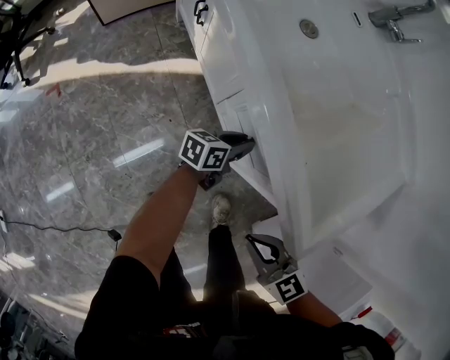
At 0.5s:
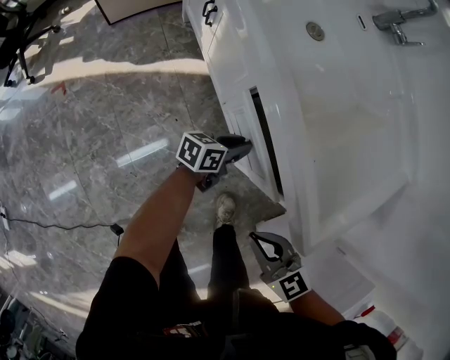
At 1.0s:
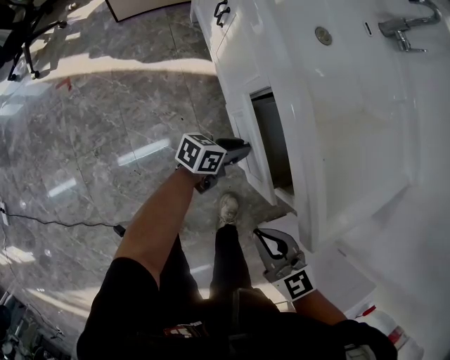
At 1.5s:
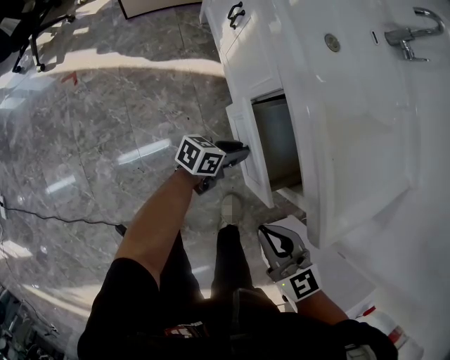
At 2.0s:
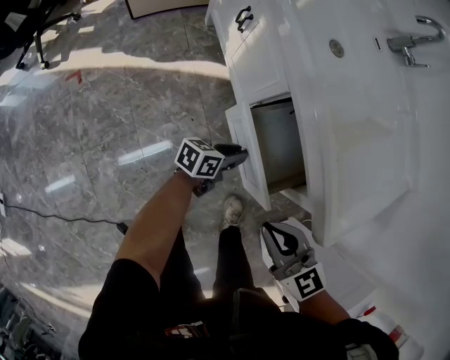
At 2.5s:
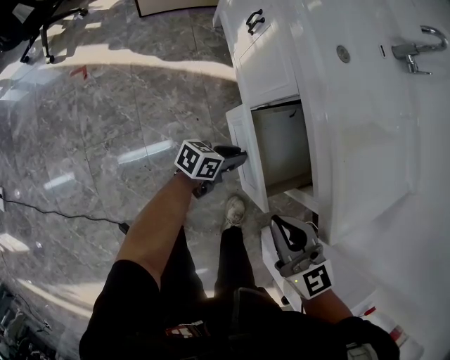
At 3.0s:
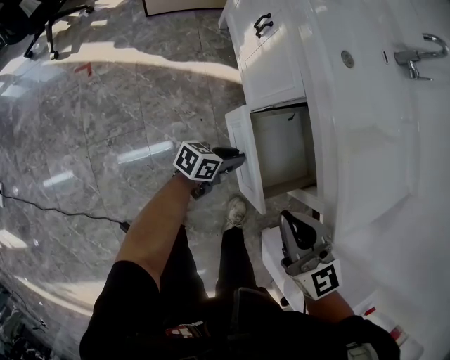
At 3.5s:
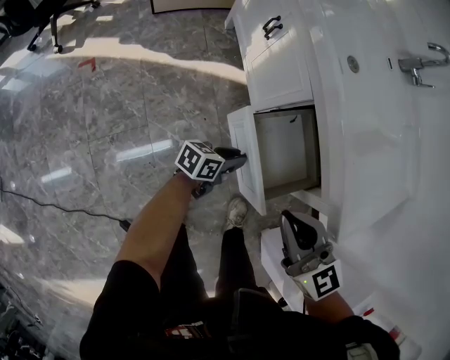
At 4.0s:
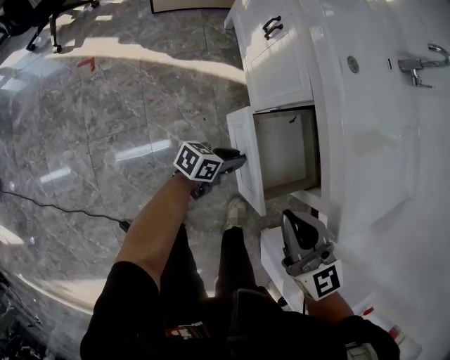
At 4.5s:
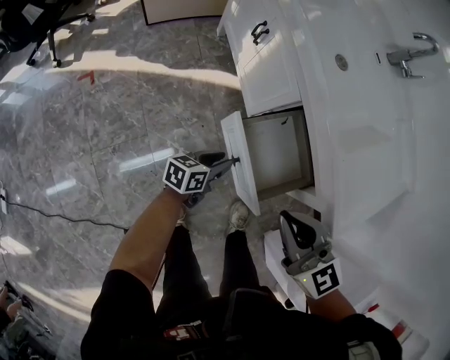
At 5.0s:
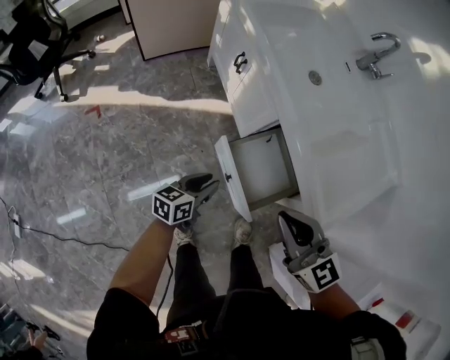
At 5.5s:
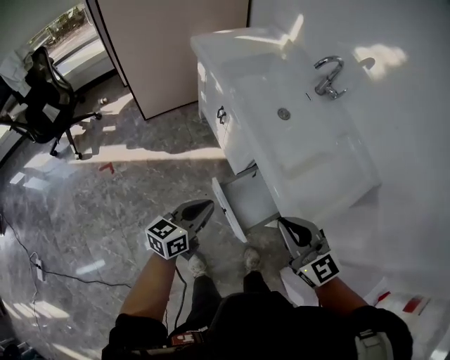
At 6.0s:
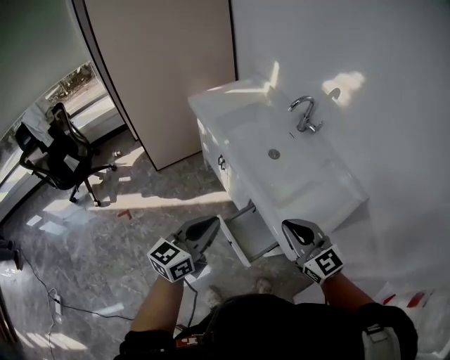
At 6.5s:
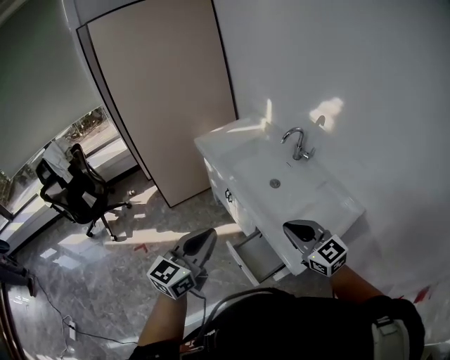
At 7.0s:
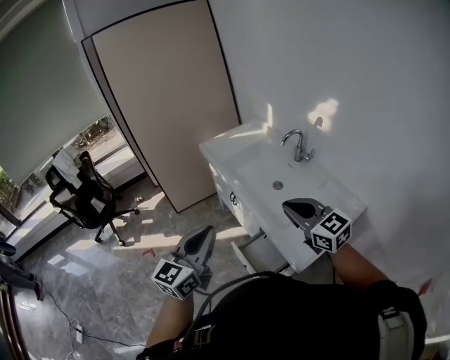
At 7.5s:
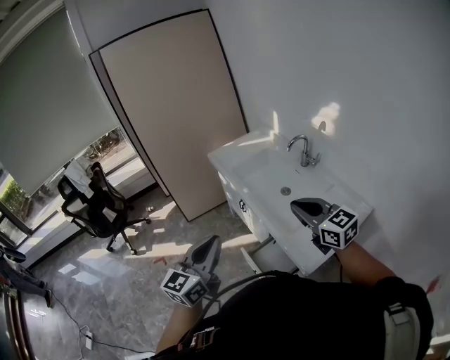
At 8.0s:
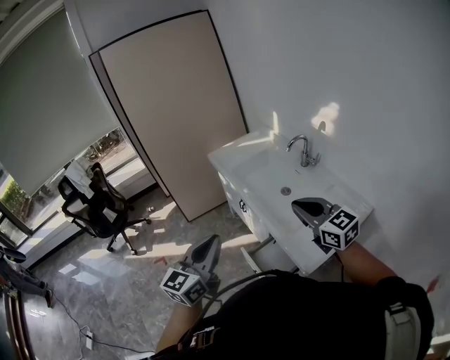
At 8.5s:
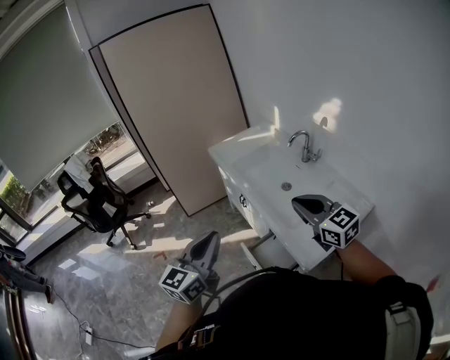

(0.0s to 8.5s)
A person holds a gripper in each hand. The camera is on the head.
0.0s - 2.0s: The right gripper heads to the left and upward, covering approximately 10 cm. The left gripper shifts about 15 cm to the left and backward.
2.0s - 4.0s: The right gripper shifts approximately 10 cm to the left and upward. Meanwhile the left gripper travels to the left by some 5 cm.
4.0s - 6.5s: The left gripper moves upward, about 70 cm, rotates some 50 degrees, and closes its fingers, while the right gripper moves upward, about 35 cm.
6.5s - 8.5s: The left gripper moves about 5 cm, while the right gripper travels upward by about 5 cm.

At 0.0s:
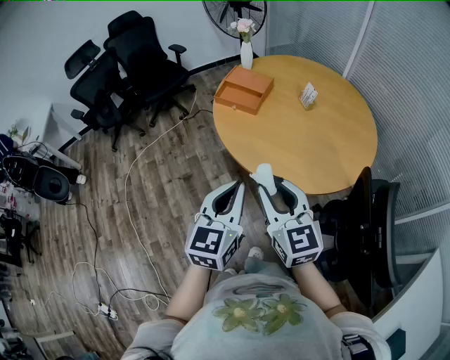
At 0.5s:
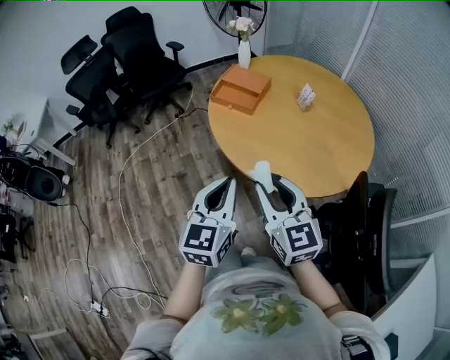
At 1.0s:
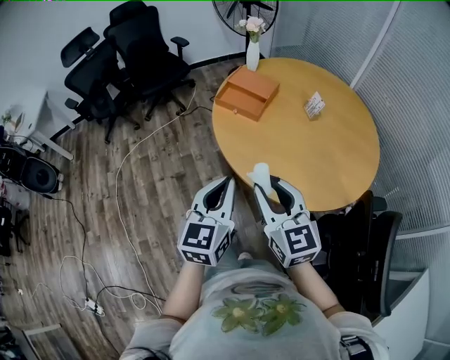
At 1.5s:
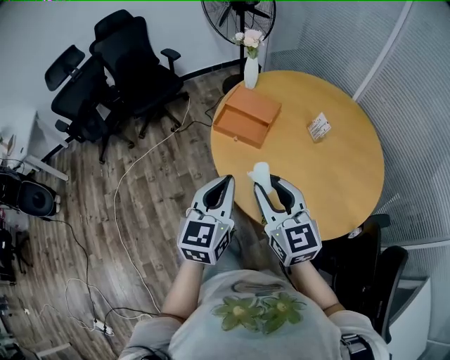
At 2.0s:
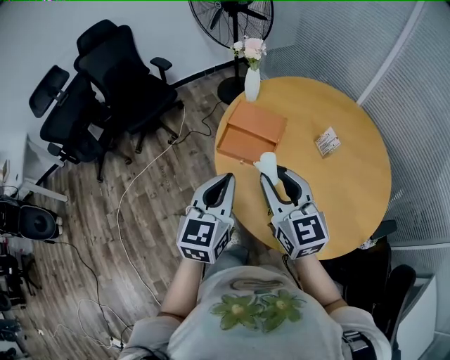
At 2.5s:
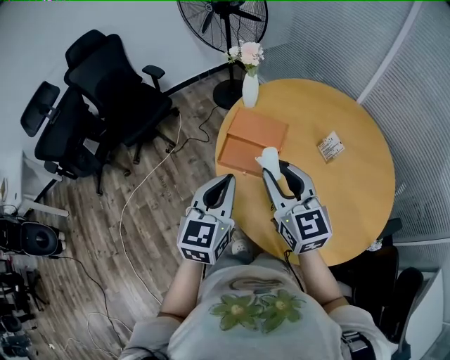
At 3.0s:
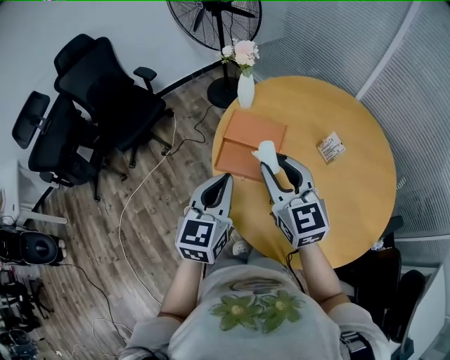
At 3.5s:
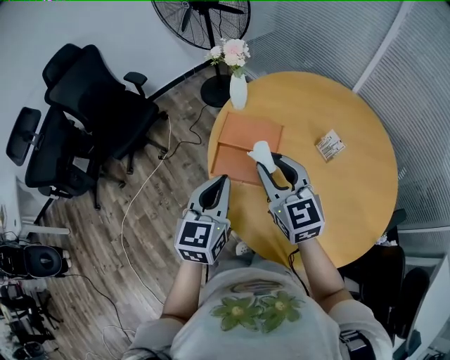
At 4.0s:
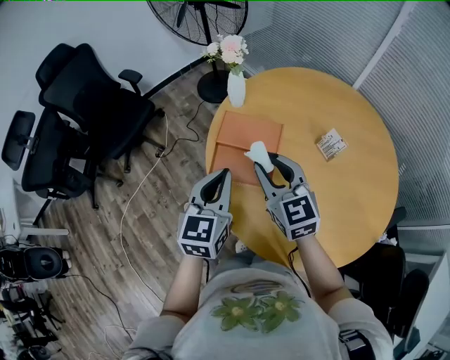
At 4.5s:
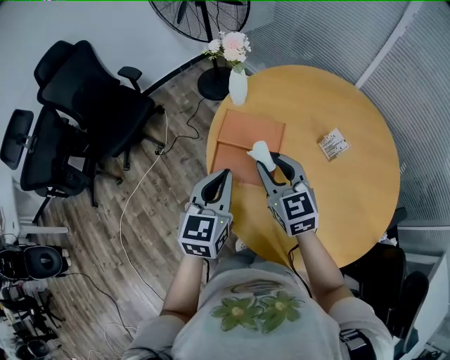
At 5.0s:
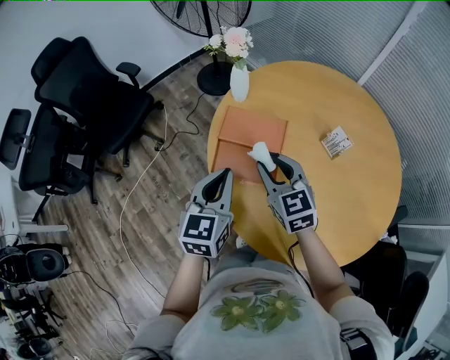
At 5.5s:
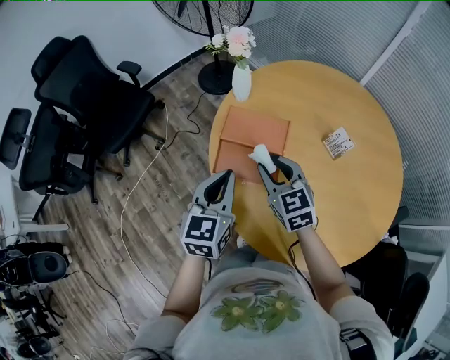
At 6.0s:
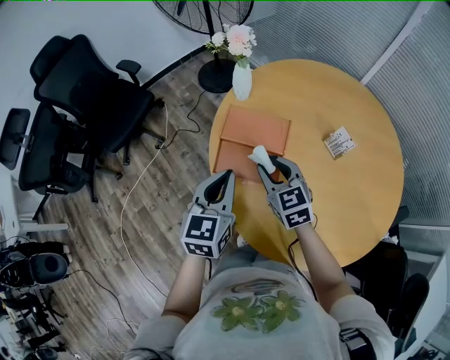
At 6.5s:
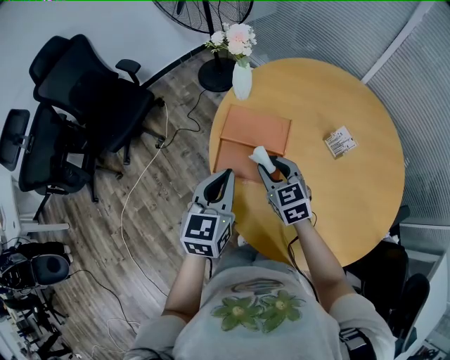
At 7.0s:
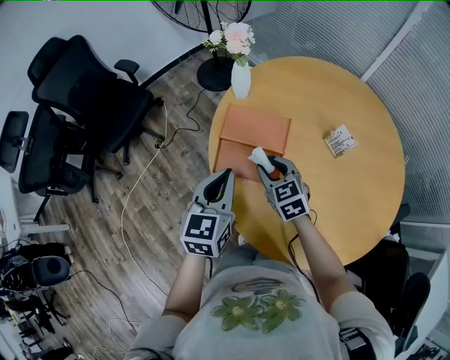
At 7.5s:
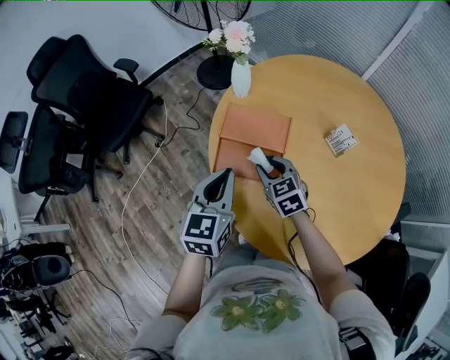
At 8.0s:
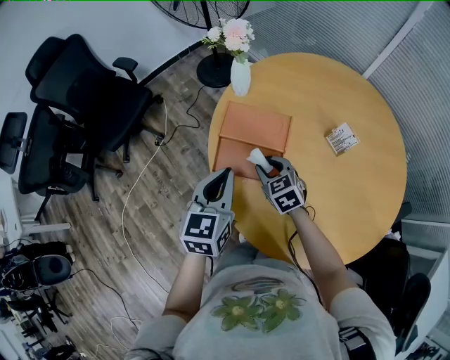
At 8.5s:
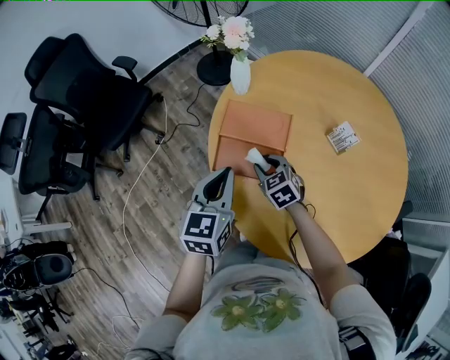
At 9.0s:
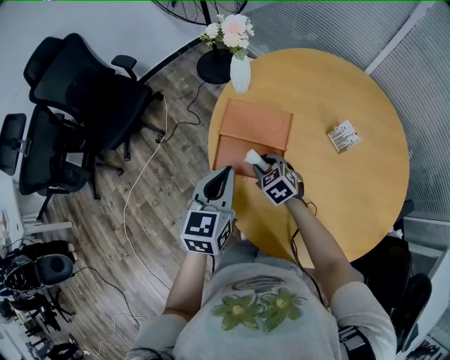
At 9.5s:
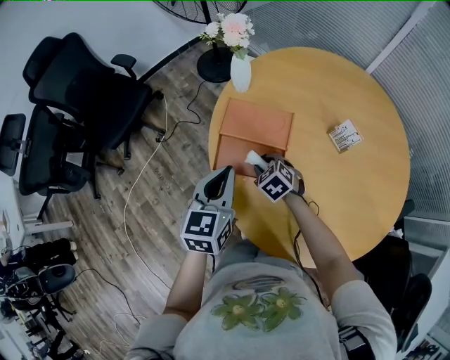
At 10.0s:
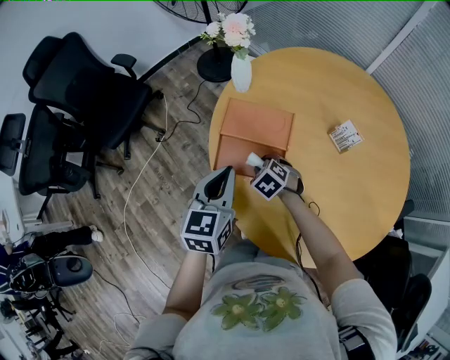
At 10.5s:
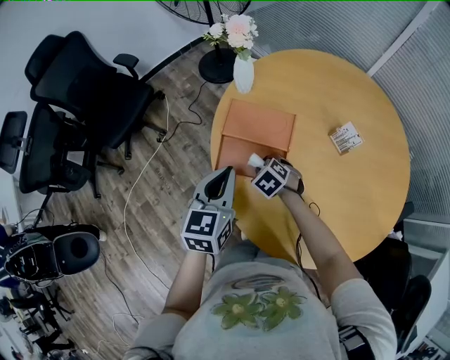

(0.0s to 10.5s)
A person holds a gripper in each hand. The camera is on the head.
0.0s - 2.0s: Both grippers are carried forward, approximately 40 cm.
2.0s - 4.0s: The left gripper goes about 15 cm forward, while the right gripper travels forward and downward by roughly 20 cm.
4.0s - 6.5s: The right gripper travels downward by about 15 cm, while the left gripper changes place by about 5 cm.
6.5s - 8.5s: The right gripper travels downward by roughly 10 cm.
8.5s - 10.5s: The right gripper heads downward, covering about 5 cm, and rotates some 20 degrees.

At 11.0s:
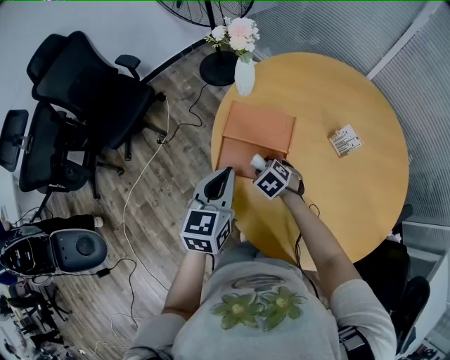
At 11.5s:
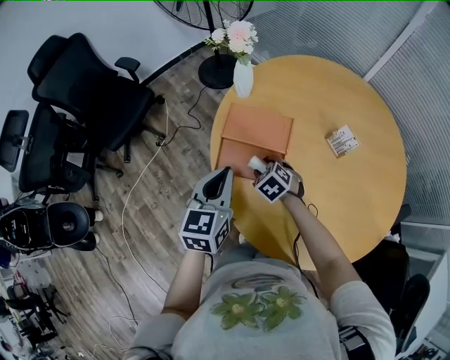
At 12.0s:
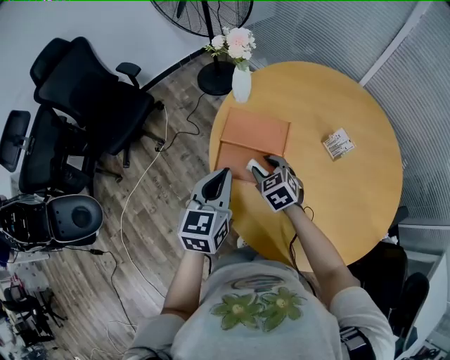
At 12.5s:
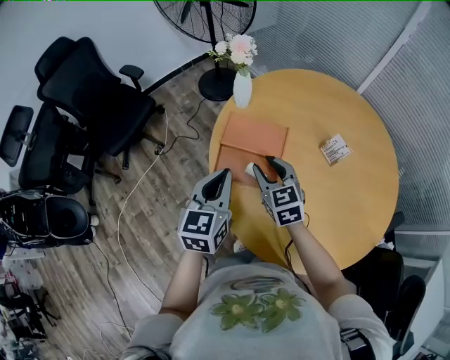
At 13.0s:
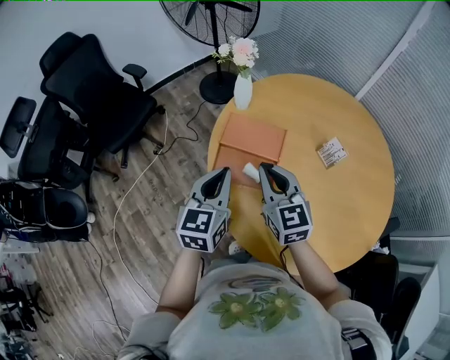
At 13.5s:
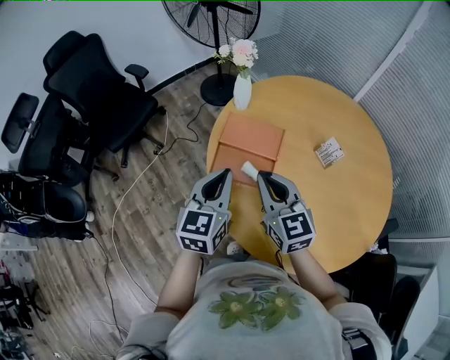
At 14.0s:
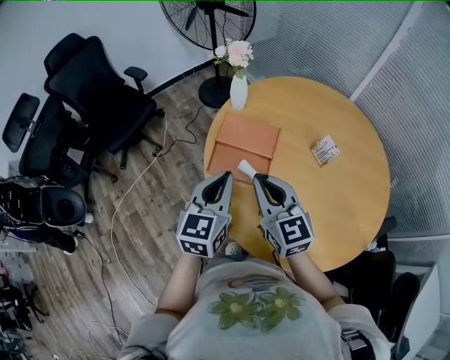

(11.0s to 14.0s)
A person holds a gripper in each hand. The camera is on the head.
11.0s - 12.5s: The right gripper goes roughly 20 cm upward, and points its fingers roughly 40 degrees further upward.
12.5s - 14.0s: The right gripper shifts some 15 cm upward and backward, and closes. The left gripper heads backward, covering roughly 5 cm.

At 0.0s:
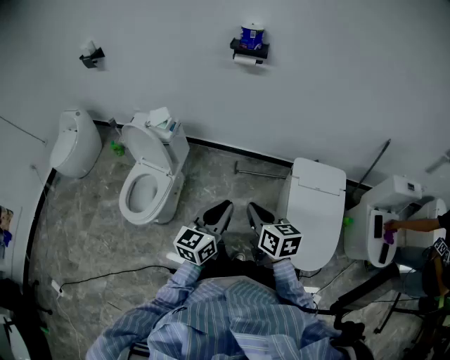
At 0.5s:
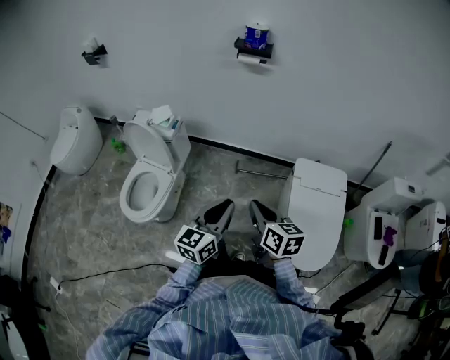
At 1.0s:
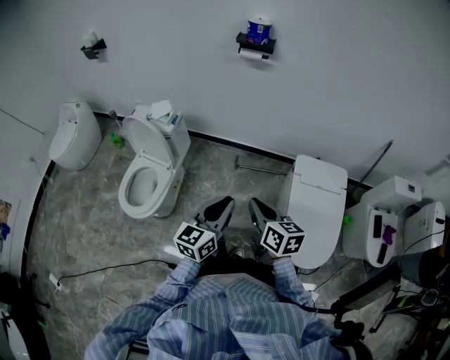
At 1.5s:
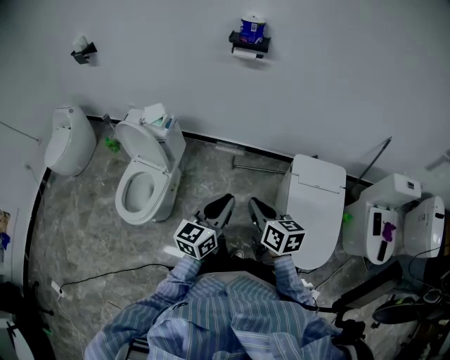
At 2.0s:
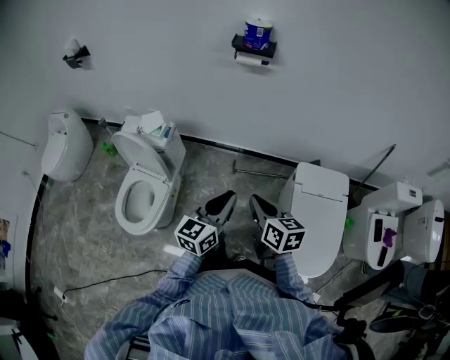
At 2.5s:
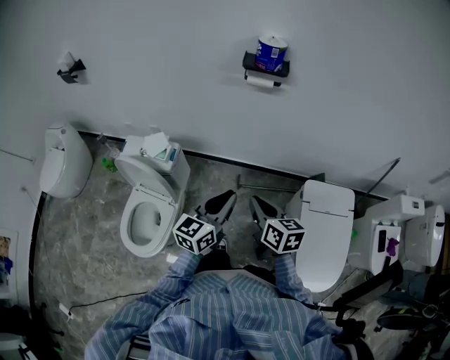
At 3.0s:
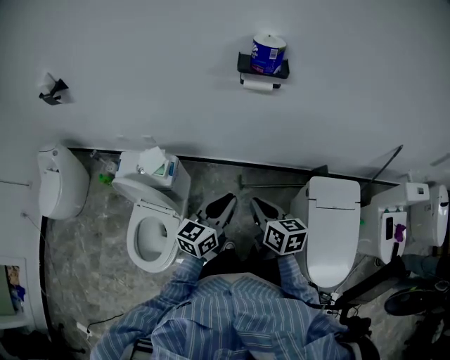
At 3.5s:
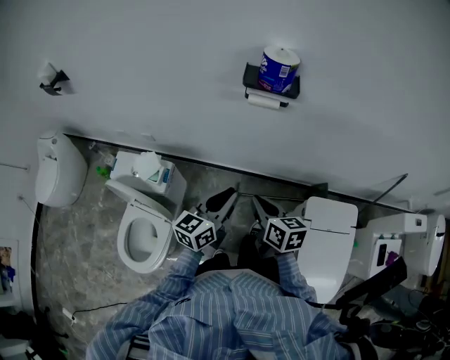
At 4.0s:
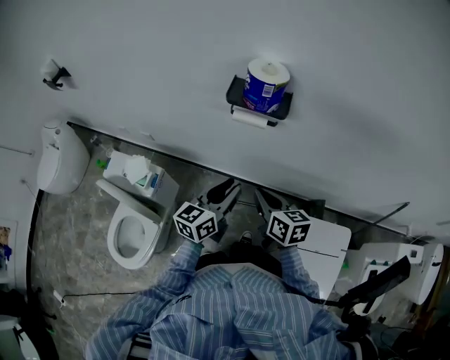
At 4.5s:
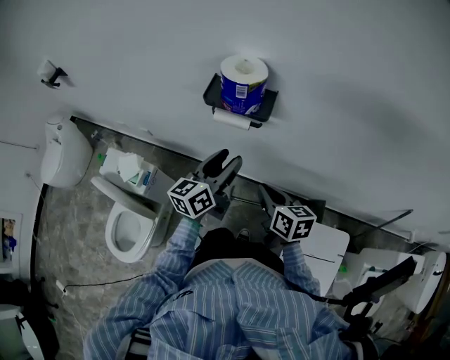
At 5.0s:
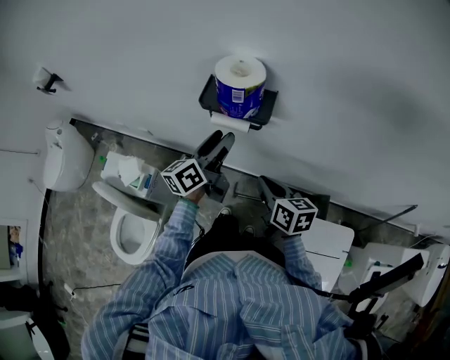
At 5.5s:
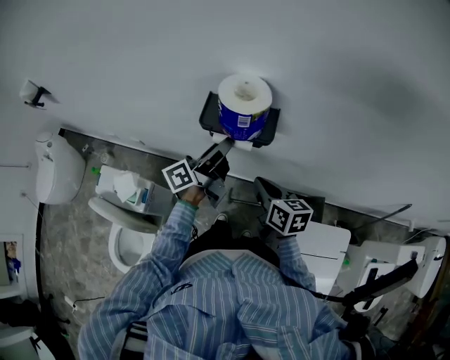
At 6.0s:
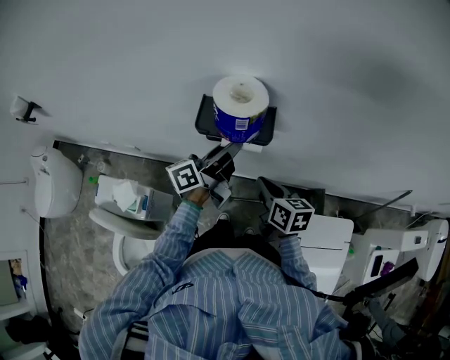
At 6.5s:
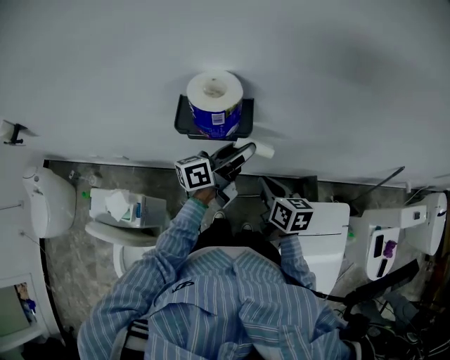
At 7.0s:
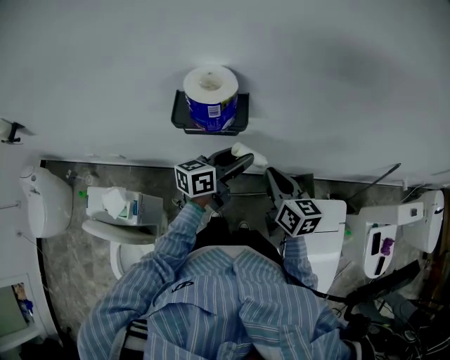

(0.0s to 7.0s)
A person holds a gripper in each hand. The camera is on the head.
0.0s - 2.0s: Both grippers travel together forward, some 10 cm.
2.0s - 3.5s: Both grippers move forward, approximately 25 cm.
3.5s - 5.0s: The right gripper moves forward and to the right, approximately 20 cm. Meanwhile the left gripper shifts about 25 cm forward, swivels roughly 20 degrees, and opens up.
5.0s - 7.0s: The right gripper ends up about 5 cm from where it was, and turns by about 20 degrees, while the left gripper changes place by approximately 10 cm, and changes its angle by about 40 degrees.
